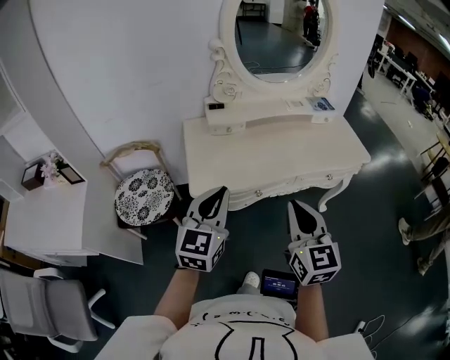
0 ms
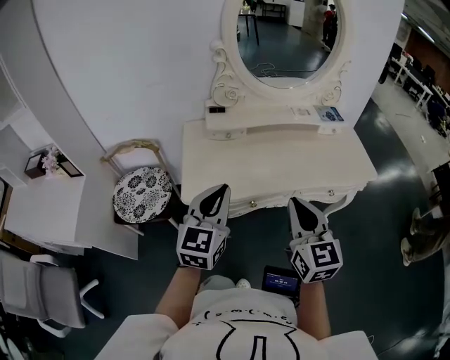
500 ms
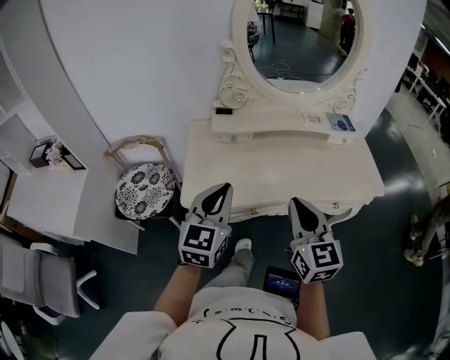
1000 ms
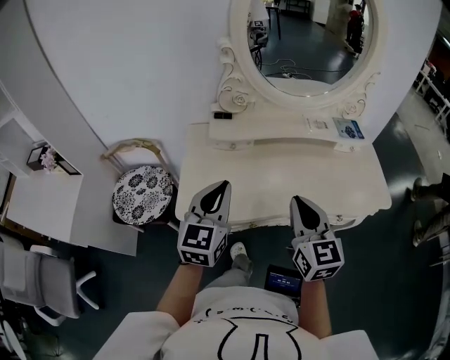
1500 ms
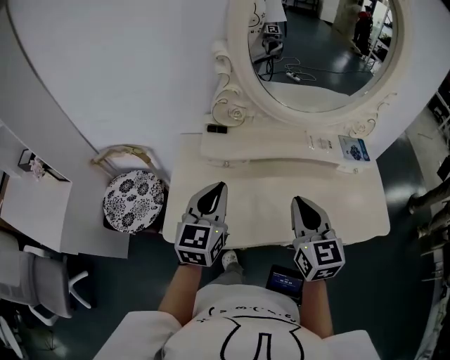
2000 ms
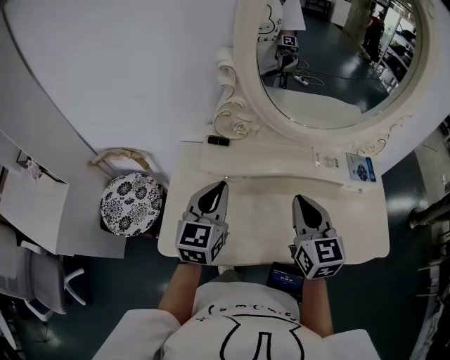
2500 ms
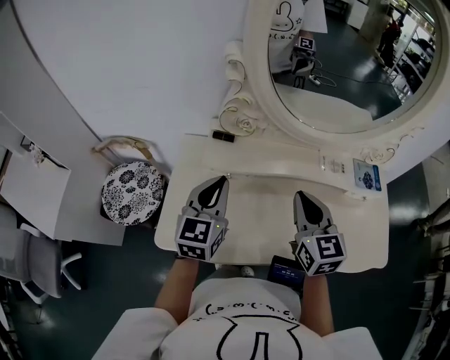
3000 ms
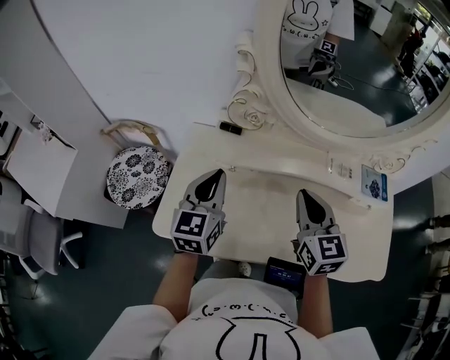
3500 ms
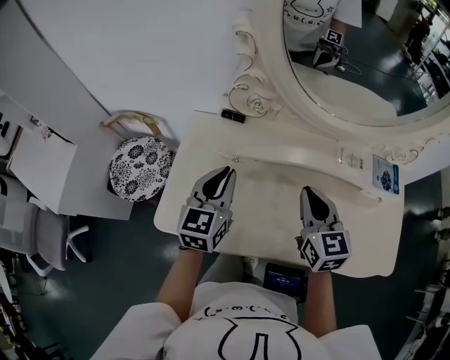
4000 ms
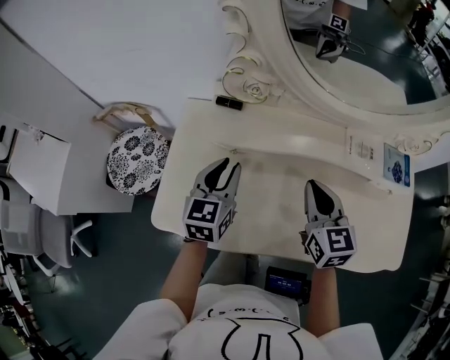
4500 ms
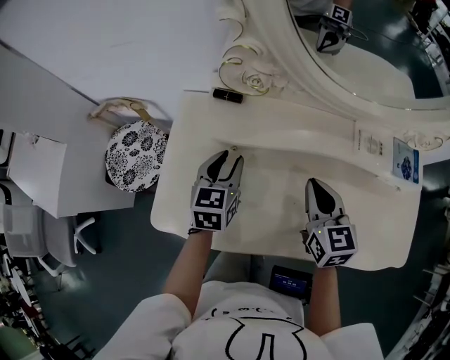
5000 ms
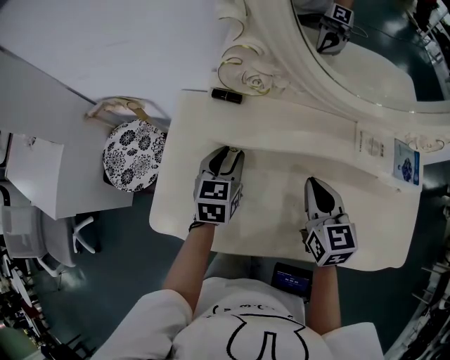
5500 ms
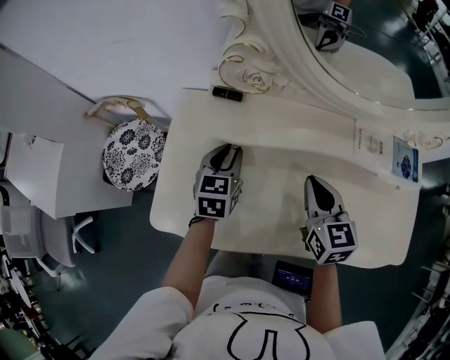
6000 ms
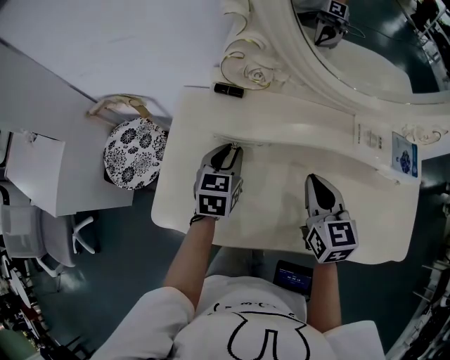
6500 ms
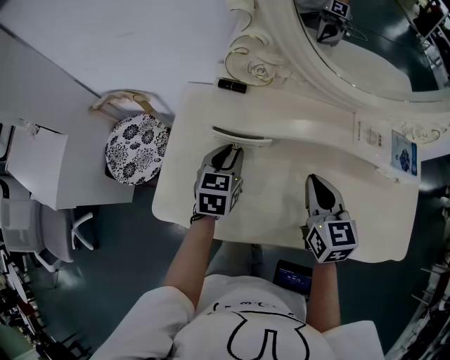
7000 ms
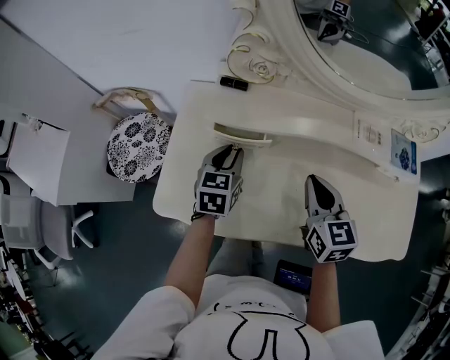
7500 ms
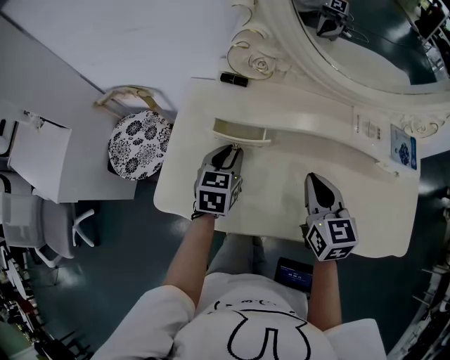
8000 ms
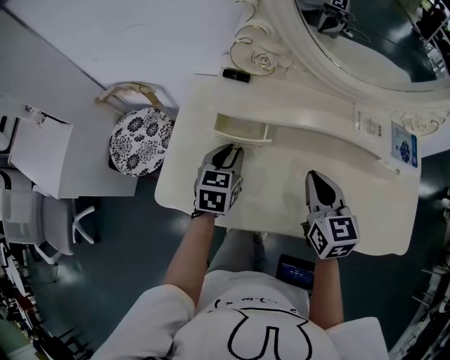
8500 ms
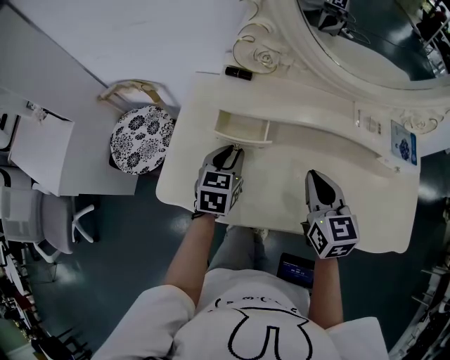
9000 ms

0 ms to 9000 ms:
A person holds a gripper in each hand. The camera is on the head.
0 ms to 2000 ms: Both grippers move forward, approximately 30 cm.
2000 ms to 4500 ms: The right gripper moves forward and downward, approximately 15 cm. The left gripper is displaced downward and forward by roughly 15 cm, and opens its fingers.
4500 ms to 7000 ms: The left gripper goes some 5 cm downward.
7000 ms to 9000 ms: The grippers make only small movements.

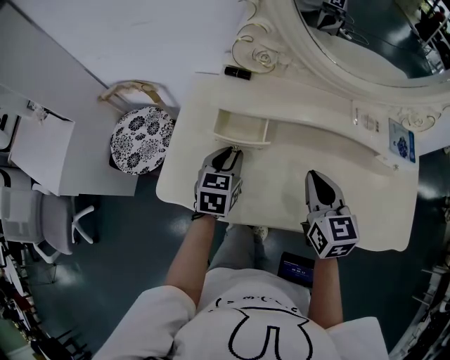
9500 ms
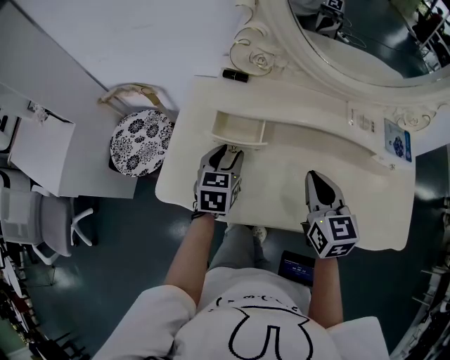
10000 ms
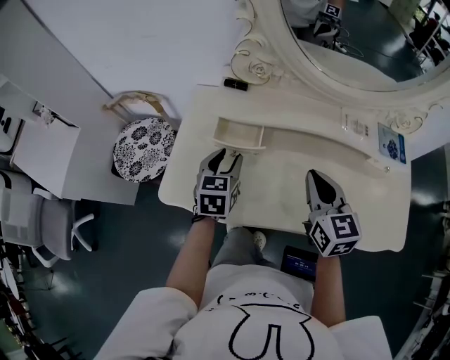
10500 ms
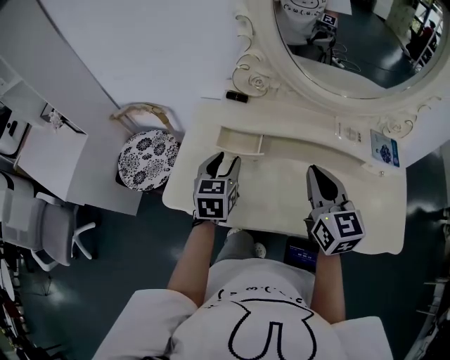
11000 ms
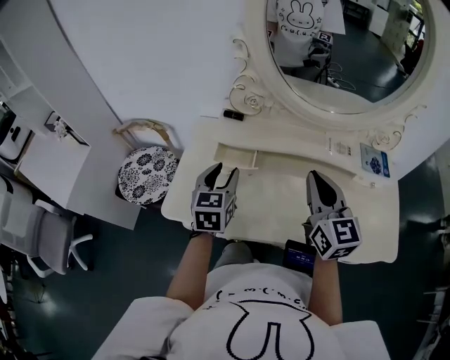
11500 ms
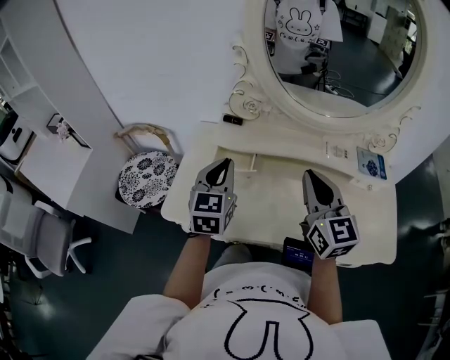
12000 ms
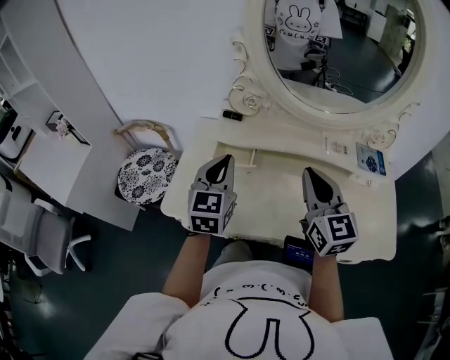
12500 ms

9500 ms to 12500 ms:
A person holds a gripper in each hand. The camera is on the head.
9500 ms to 11000 ms: Both grippers move upward, about 10 cm.
11000 ms to 12500 ms: The right gripper moves about 5 cm, while the left gripper moves upward, some 10 cm, and closes.

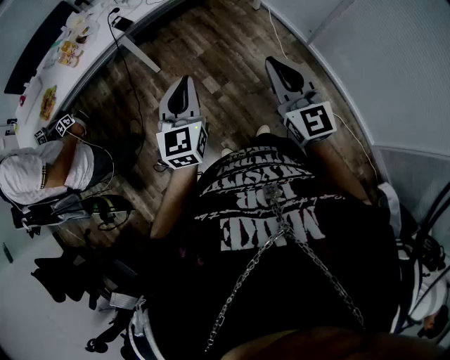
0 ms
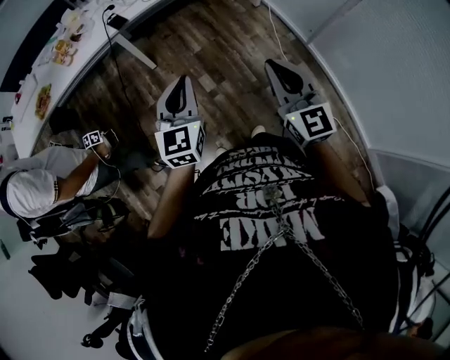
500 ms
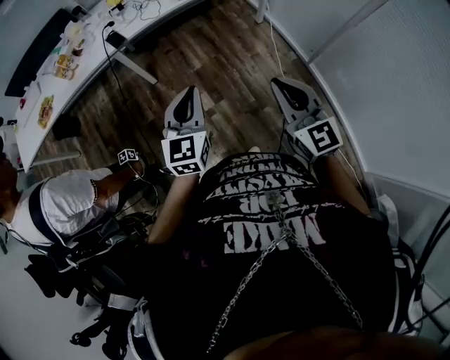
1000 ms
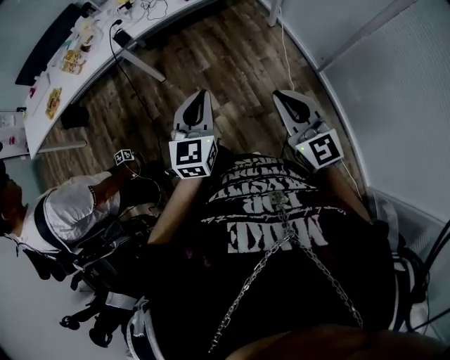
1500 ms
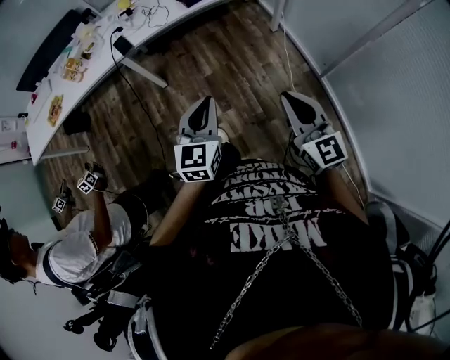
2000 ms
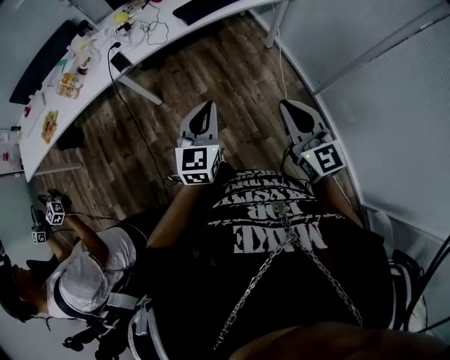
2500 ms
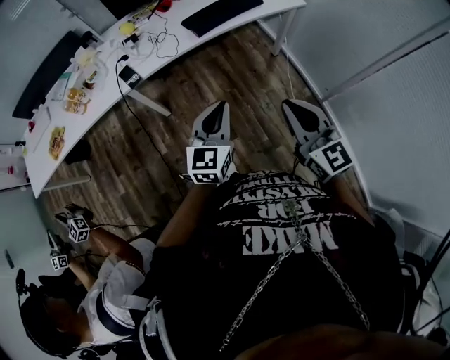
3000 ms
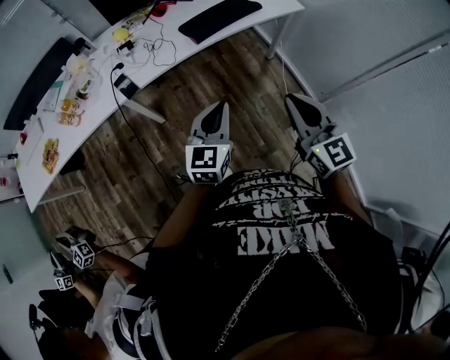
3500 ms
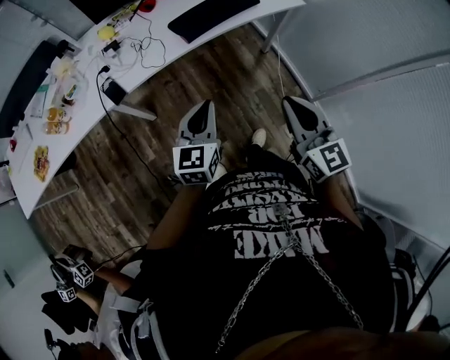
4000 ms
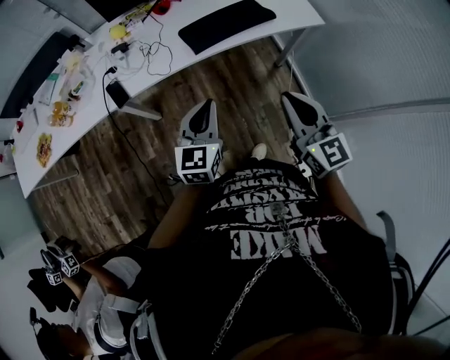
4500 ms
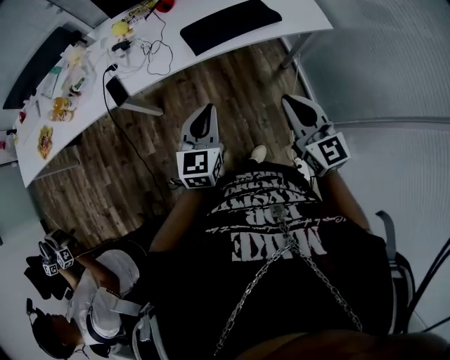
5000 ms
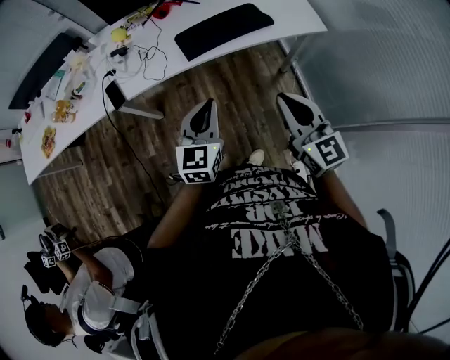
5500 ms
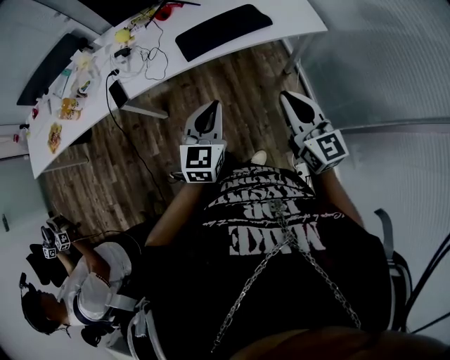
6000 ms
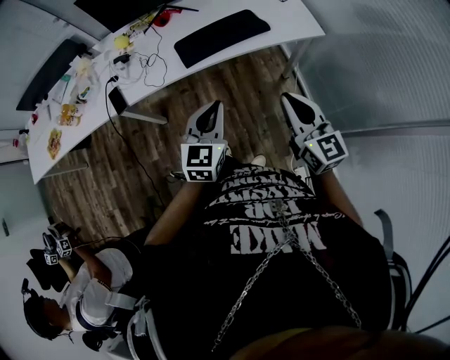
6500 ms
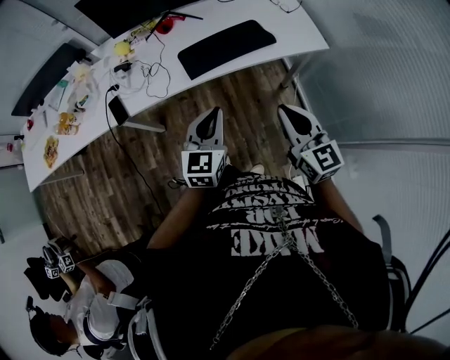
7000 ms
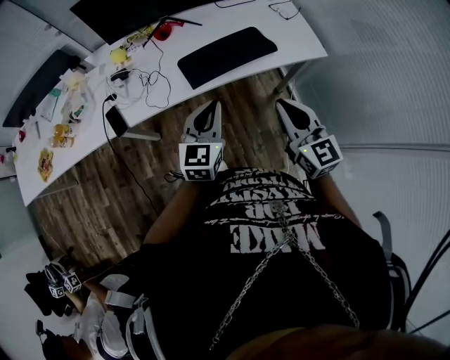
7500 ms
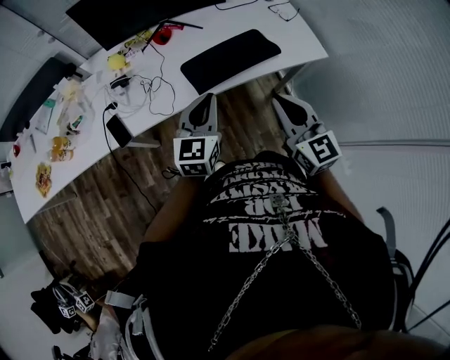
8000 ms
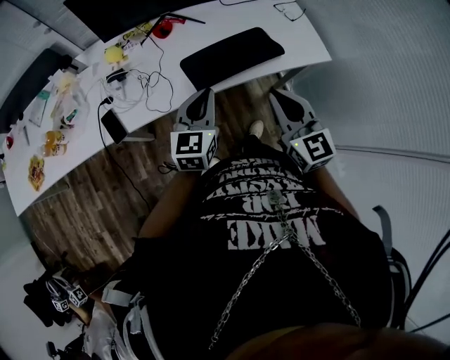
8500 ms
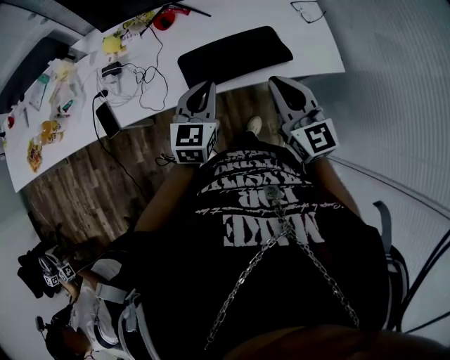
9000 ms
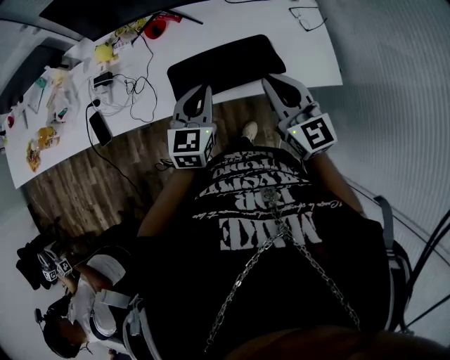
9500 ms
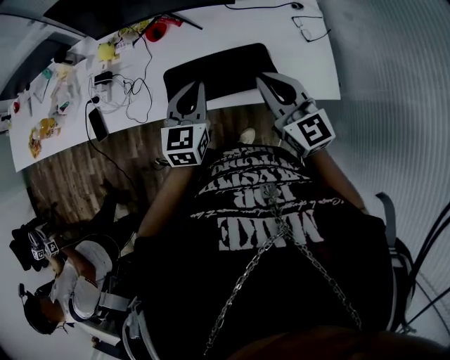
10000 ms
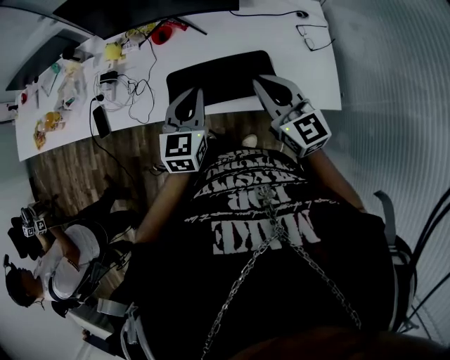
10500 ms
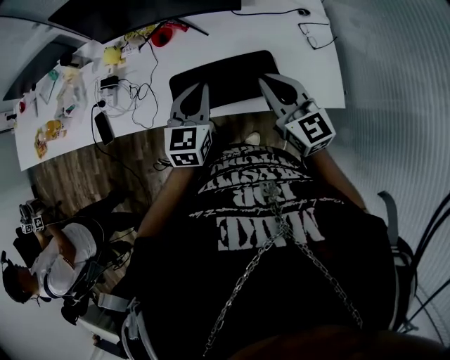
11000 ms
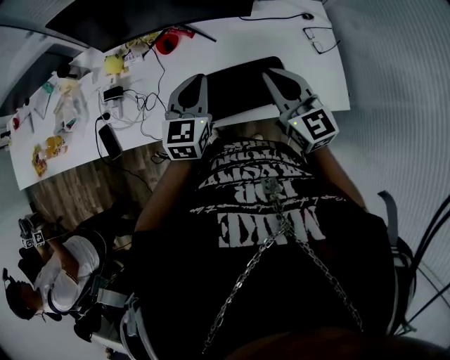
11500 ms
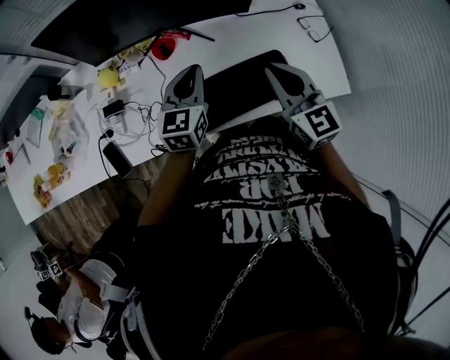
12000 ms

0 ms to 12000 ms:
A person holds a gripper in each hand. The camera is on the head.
0 ms to 2000 ms: The grippers both shift to the right and forward by roughly 25 cm.
2000 ms to 4000 ms: Both grippers move forward, some 30 cm.
4000 ms to 6000 ms: The two grippers go about 20 cm to the right and forward.
6000 ms to 8000 ms: Both grippers move forward and to the left, about 20 cm.
8000 ms to 10000 ms: Both grippers move forward and to the right, approximately 25 cm. The left gripper turns by roughly 20 degrees; the right gripper turns by approximately 20 degrees.
10000 ms to 12000 ms: The grippers both shift forward and to the left by roughly 15 cm.

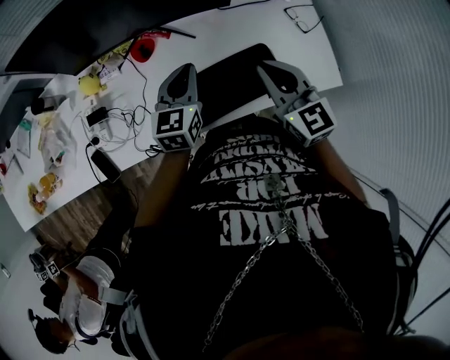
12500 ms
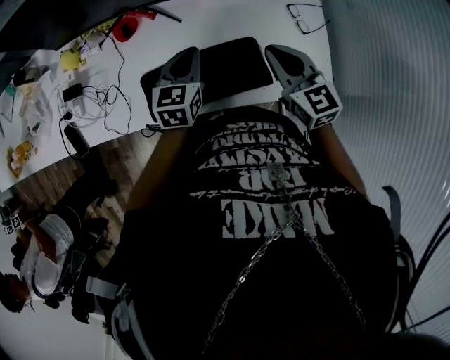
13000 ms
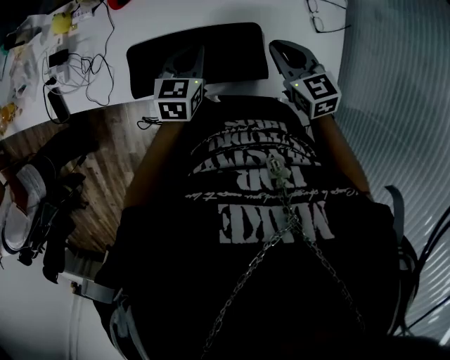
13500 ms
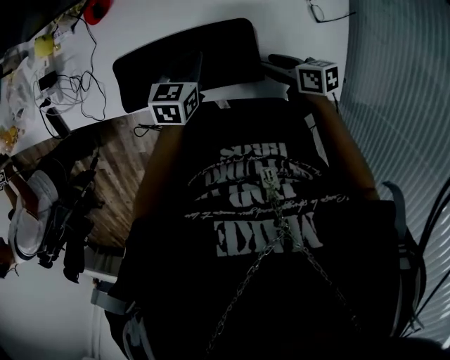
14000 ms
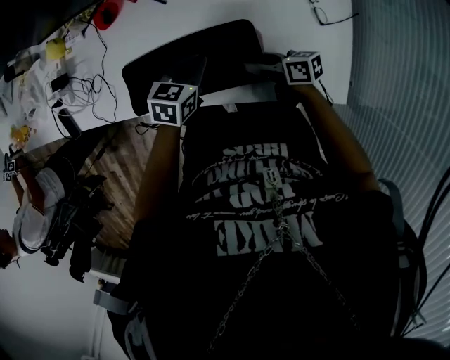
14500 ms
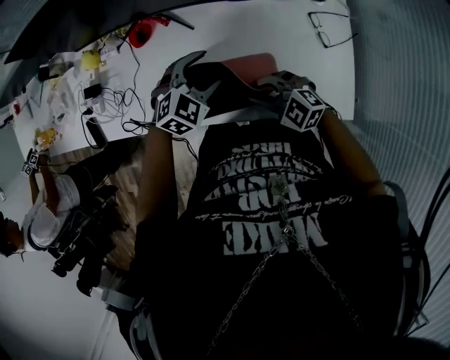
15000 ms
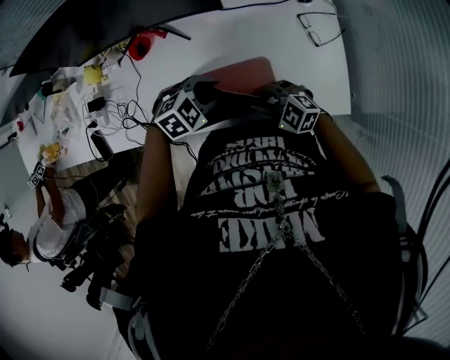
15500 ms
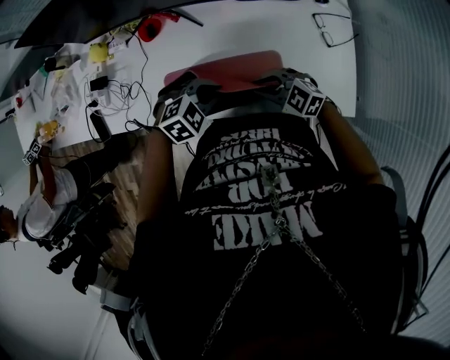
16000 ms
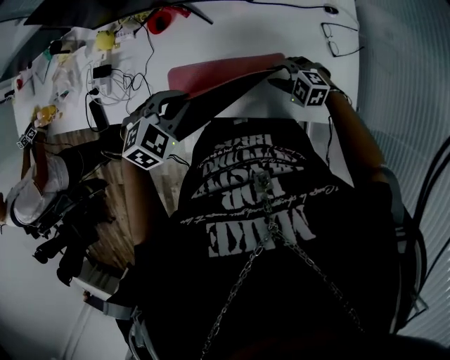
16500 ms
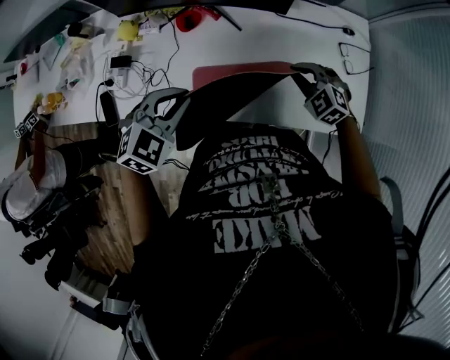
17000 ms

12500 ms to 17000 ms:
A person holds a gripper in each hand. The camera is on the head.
12500 ms to 14500 ms: Both grippers travel together downward and to the right, approximately 30 cm. The left gripper changes its angle by some 30 degrees; the right gripper swivels approximately 70 degrees, and opens its fingers.
14500 ms to 17000 ms: The left gripper moves roughly 30 cm, rolls clockwise, seen from behind, by about 40 degrees, and opens, then closes once more. Meanwhile the right gripper moves up and down over roughly 15 cm, changing direction 2 times, rotates around the line of its fingers by approximately 80 degrees, counterclockwise from behind, and closes its fingers.
